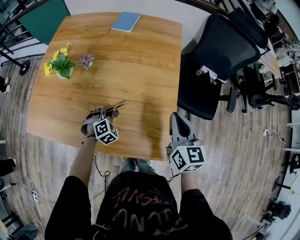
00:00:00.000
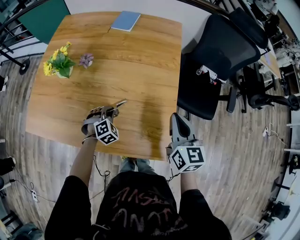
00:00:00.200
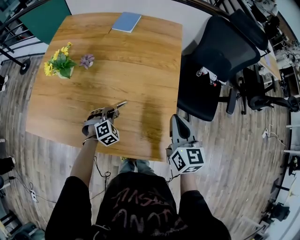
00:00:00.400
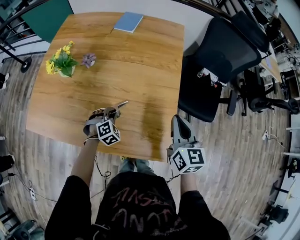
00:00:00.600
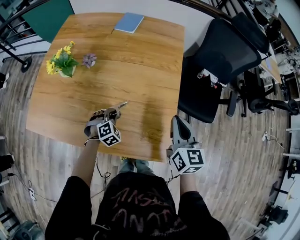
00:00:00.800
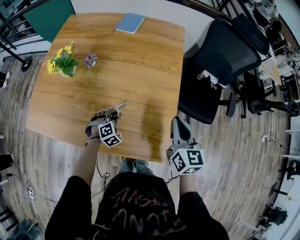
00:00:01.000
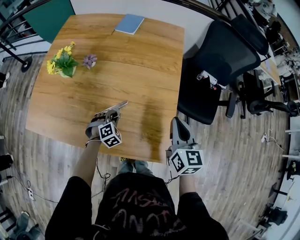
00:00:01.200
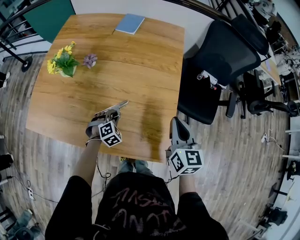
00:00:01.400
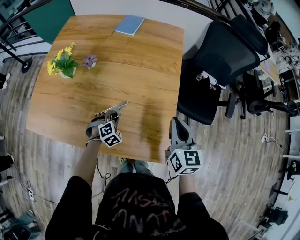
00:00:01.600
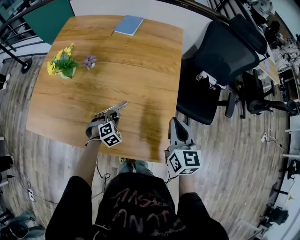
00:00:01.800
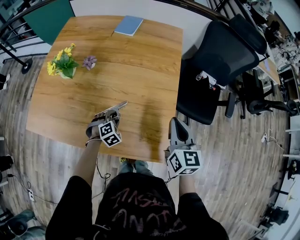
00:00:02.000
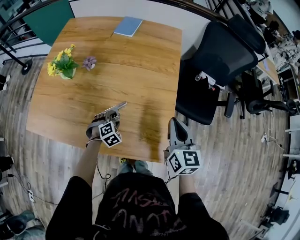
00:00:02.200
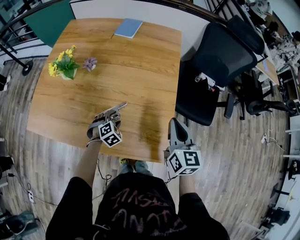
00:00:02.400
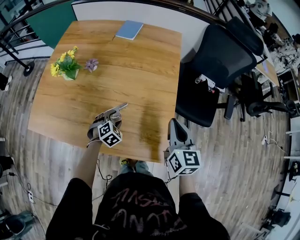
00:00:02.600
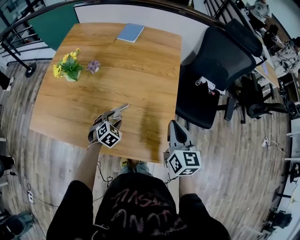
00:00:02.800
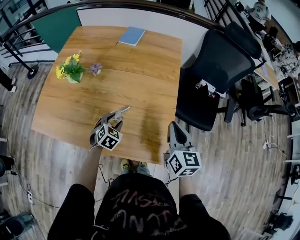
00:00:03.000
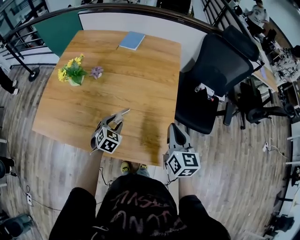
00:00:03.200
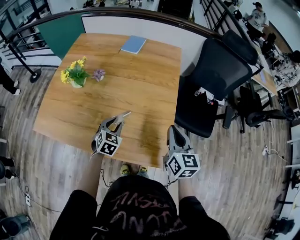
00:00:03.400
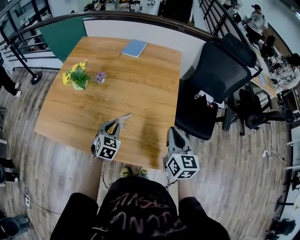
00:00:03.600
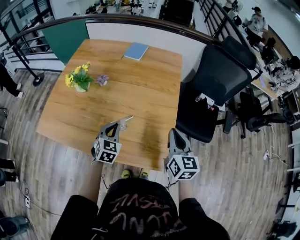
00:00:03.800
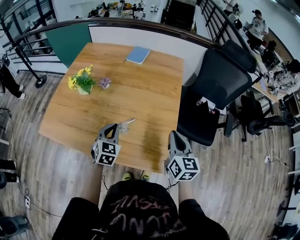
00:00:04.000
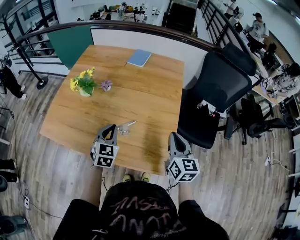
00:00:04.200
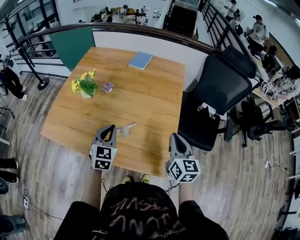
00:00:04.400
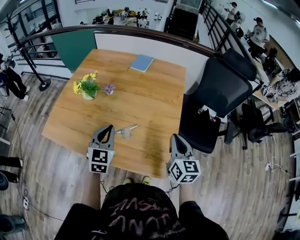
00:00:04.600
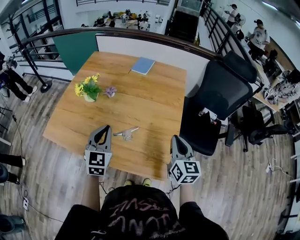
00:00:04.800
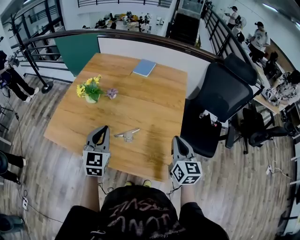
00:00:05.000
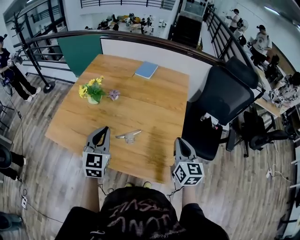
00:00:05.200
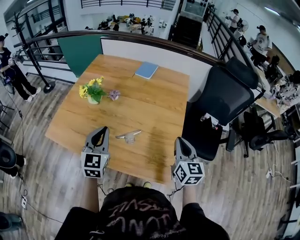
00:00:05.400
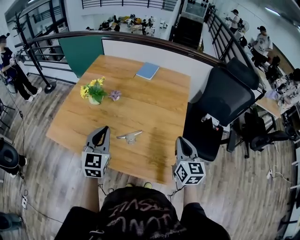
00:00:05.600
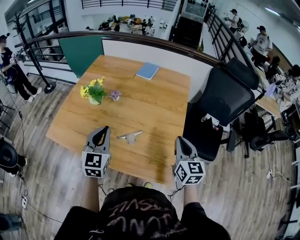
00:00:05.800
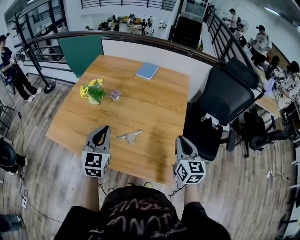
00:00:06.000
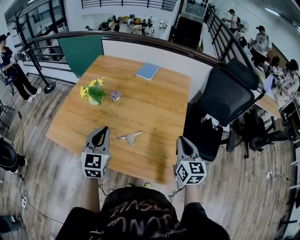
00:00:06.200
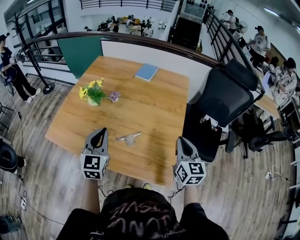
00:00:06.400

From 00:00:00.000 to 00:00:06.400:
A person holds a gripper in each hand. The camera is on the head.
From 00:00:00.000 to 00:00:01.600: The grippers move only a little.
From 00:00:01.600 to 00:00:03.200: The left gripper is displaced upward by roughly 10 cm, and rotates roughly 30 degrees.
From 00:00:03.200 to 00:00:04.800: The left gripper goes about 20 cm upward, points its fingers some 30 degrees further upward, and closes its fingers.
From 00:00:04.800 to 00:00:06.400: The grippers move only a little.

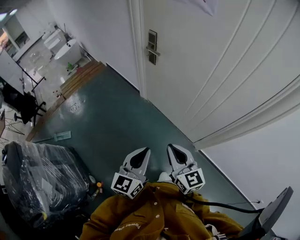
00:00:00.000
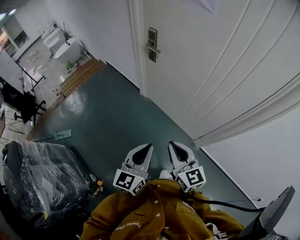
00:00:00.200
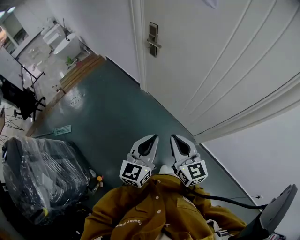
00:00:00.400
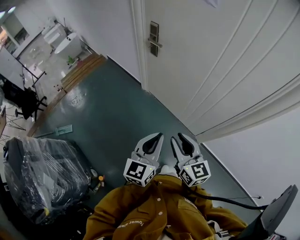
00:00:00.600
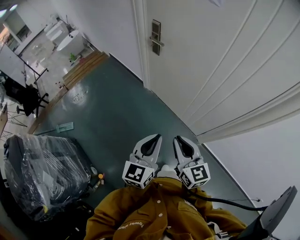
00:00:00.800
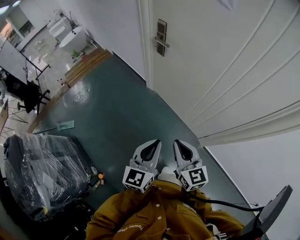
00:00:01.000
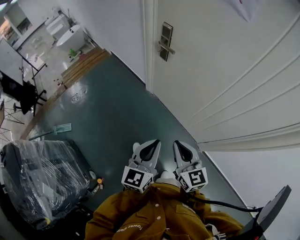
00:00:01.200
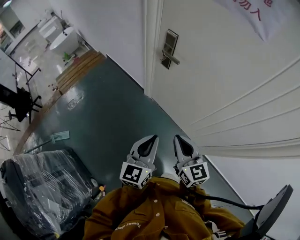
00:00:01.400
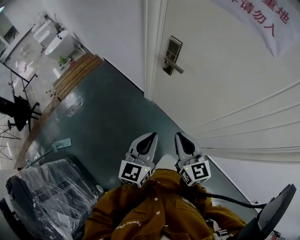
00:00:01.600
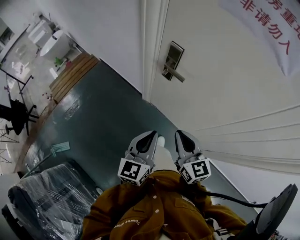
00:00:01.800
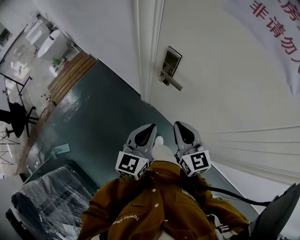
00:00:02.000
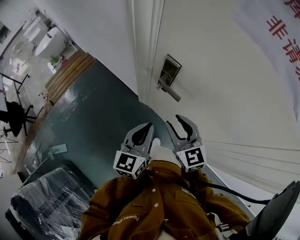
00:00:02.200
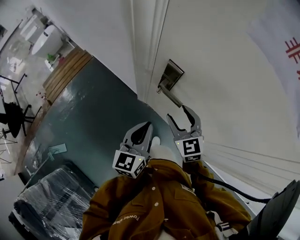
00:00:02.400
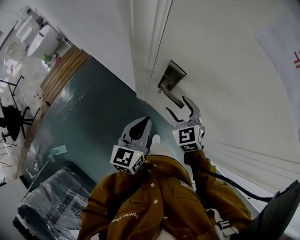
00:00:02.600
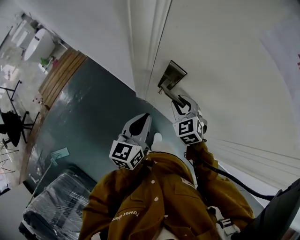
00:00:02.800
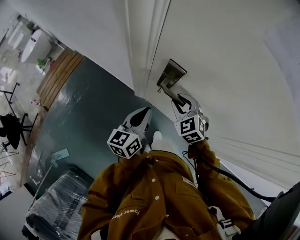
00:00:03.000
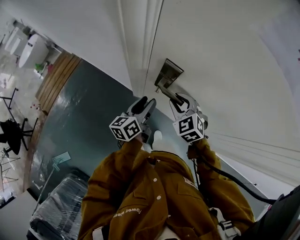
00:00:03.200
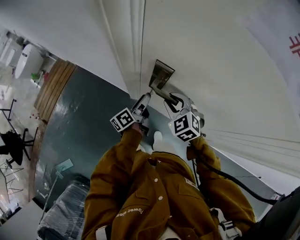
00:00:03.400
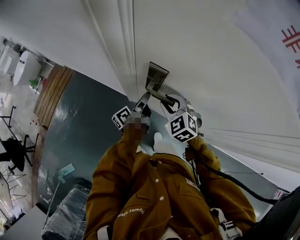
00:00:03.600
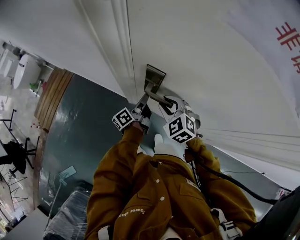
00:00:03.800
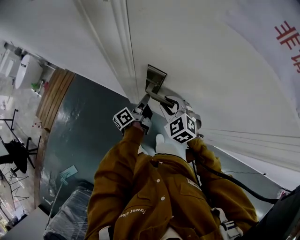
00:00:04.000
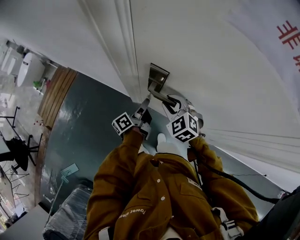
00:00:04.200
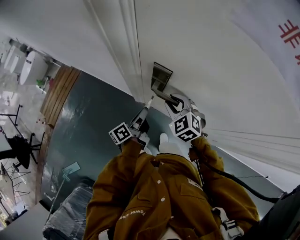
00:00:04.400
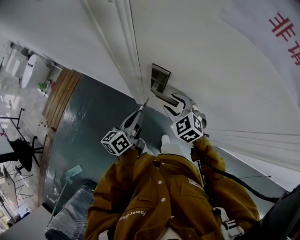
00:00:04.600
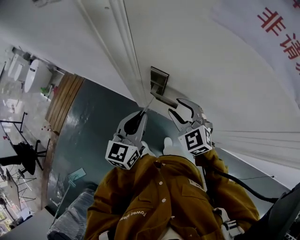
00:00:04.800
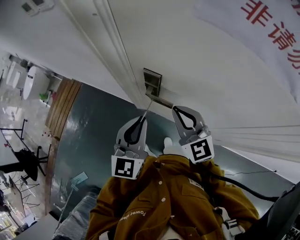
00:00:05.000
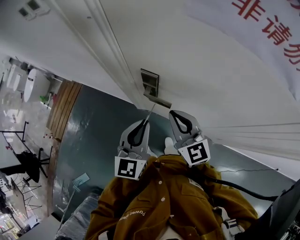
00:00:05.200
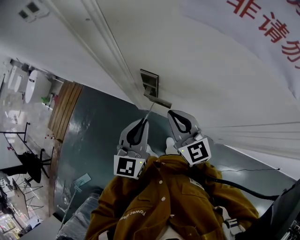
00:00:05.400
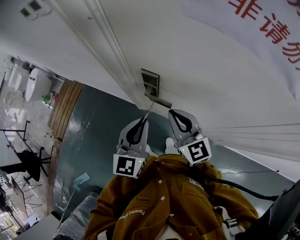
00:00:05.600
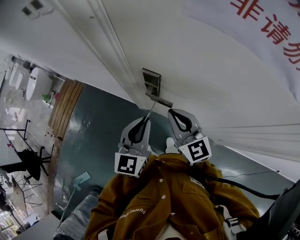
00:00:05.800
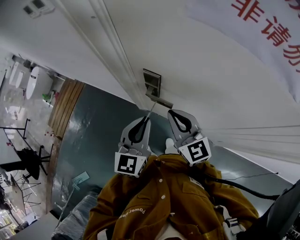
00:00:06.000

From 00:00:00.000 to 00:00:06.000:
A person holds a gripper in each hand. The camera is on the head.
From 00:00:00.000 to 00:00:01.600: Both grippers move forward, approximately 30 cm. The right gripper opens, then closes again.
From 00:00:01.600 to 00:00:03.000: Both grippers travel together forward, about 35 cm. The left gripper turns by some 20 degrees. Meanwhile the right gripper rotates approximately 40 degrees, and opens its fingers.
From 00:00:03.000 to 00:00:04.400: The left gripper shifts approximately 5 cm downward, goes forward and returns, roughly 10 cm each way, rotates around the line of its fingers by roughly 50 degrees, counterclockwise from behind, and opens, then closes again.
From 00:00:04.400 to 00:00:06.000: The right gripper travels upward and backward by roughly 15 cm, points its fingers roughly 40 degrees further upward, and closes up, while the left gripper goes about 15 cm upward, and rolls clockwise, seen from behind, by roughly 80 degrees.

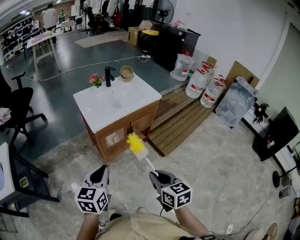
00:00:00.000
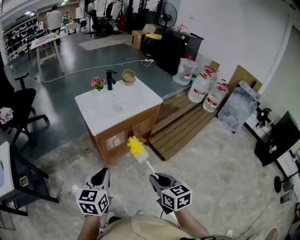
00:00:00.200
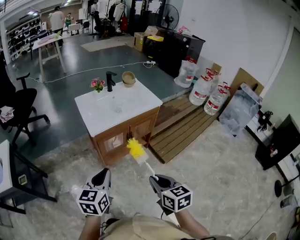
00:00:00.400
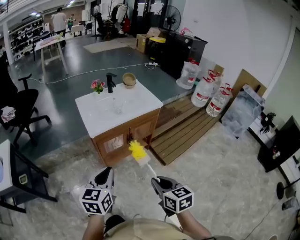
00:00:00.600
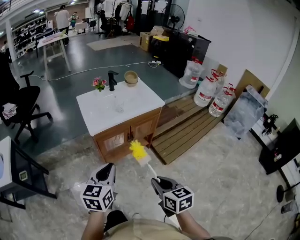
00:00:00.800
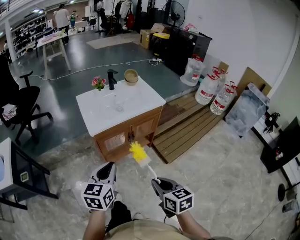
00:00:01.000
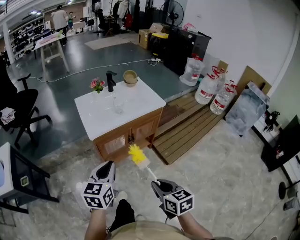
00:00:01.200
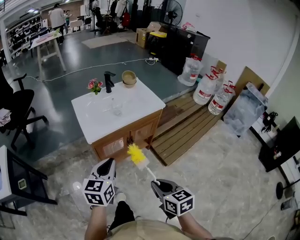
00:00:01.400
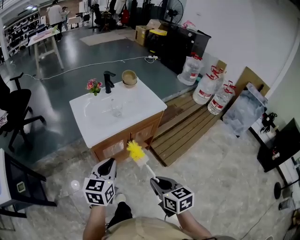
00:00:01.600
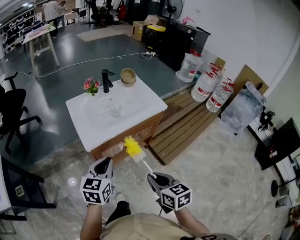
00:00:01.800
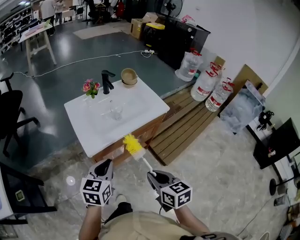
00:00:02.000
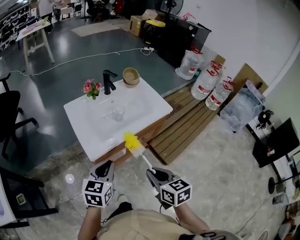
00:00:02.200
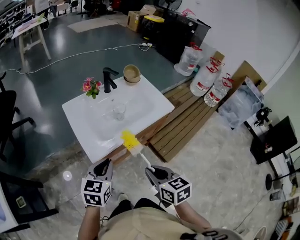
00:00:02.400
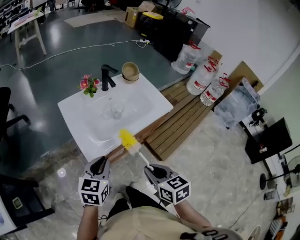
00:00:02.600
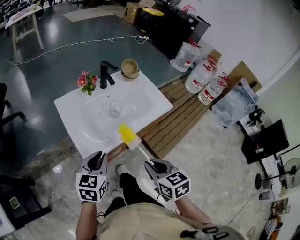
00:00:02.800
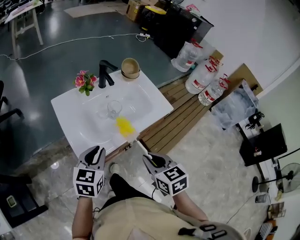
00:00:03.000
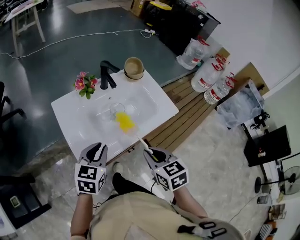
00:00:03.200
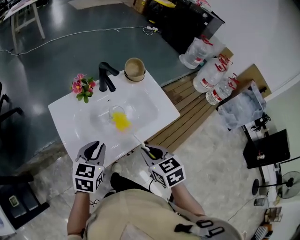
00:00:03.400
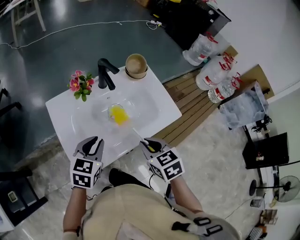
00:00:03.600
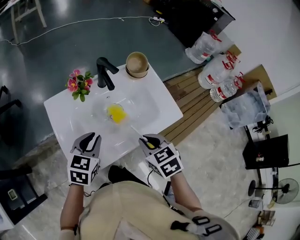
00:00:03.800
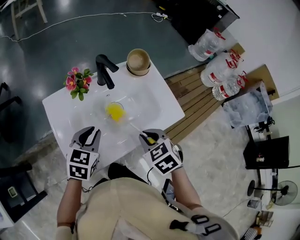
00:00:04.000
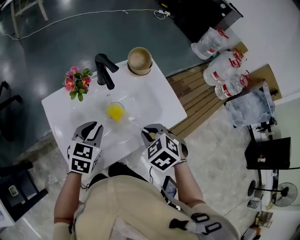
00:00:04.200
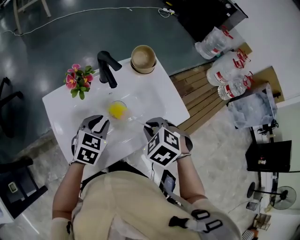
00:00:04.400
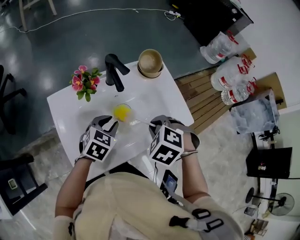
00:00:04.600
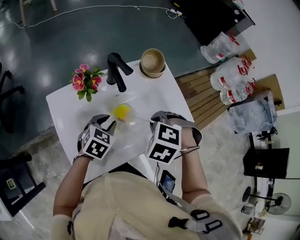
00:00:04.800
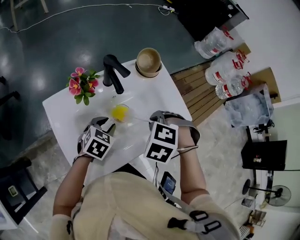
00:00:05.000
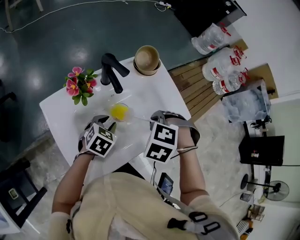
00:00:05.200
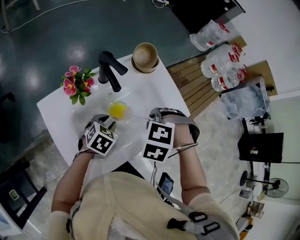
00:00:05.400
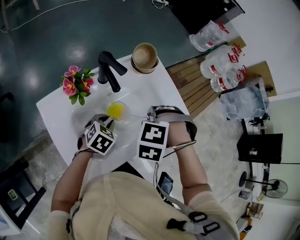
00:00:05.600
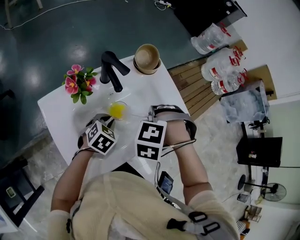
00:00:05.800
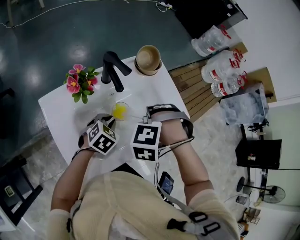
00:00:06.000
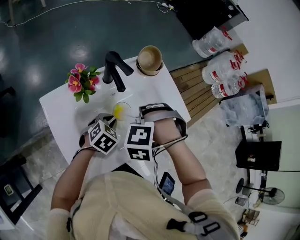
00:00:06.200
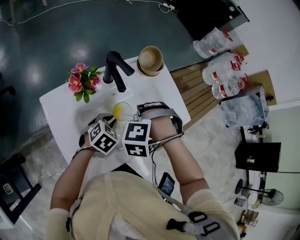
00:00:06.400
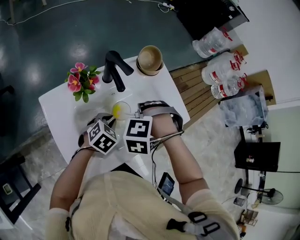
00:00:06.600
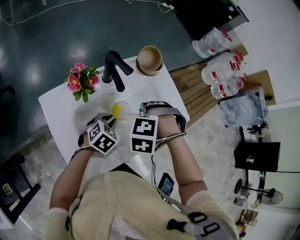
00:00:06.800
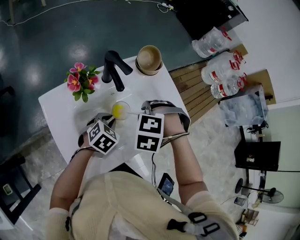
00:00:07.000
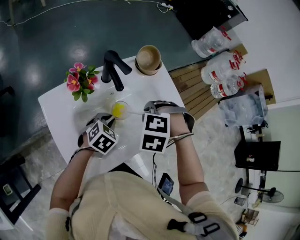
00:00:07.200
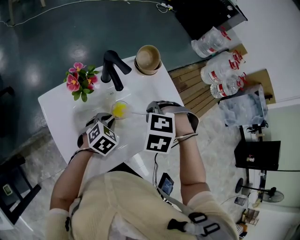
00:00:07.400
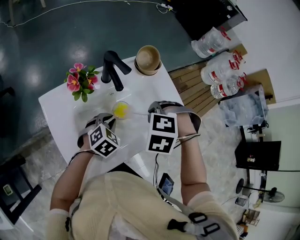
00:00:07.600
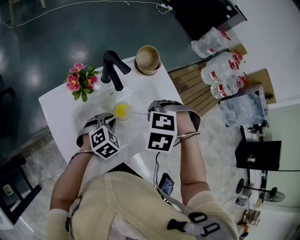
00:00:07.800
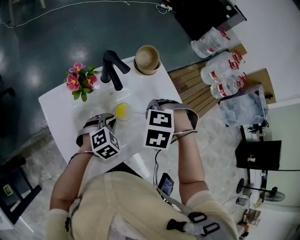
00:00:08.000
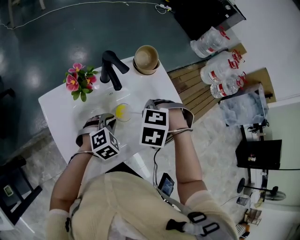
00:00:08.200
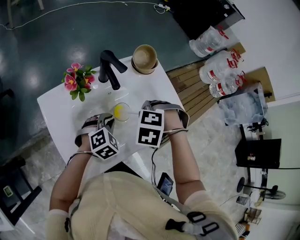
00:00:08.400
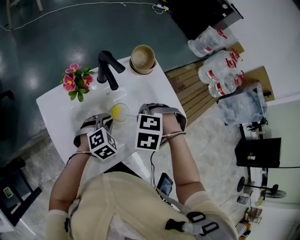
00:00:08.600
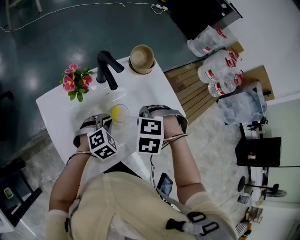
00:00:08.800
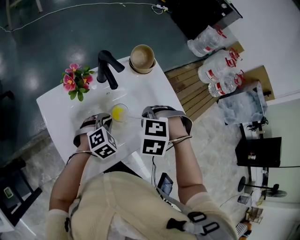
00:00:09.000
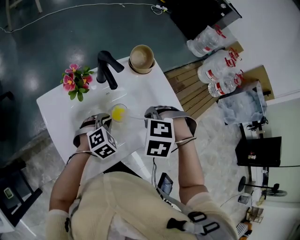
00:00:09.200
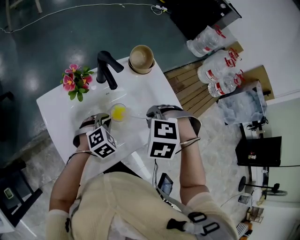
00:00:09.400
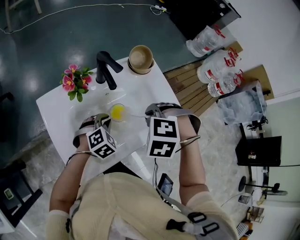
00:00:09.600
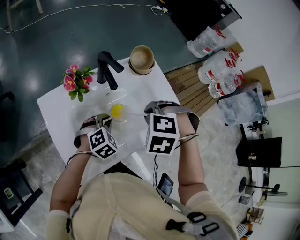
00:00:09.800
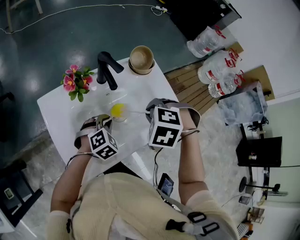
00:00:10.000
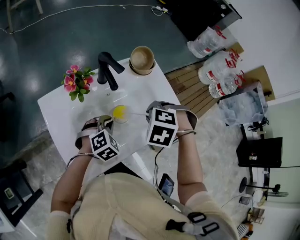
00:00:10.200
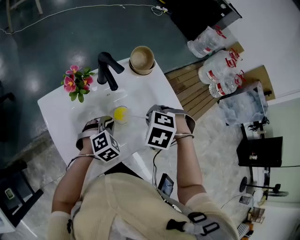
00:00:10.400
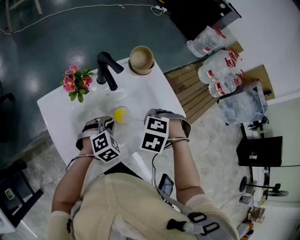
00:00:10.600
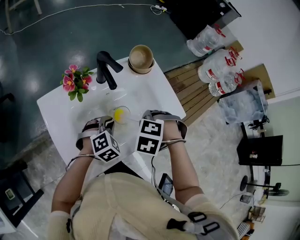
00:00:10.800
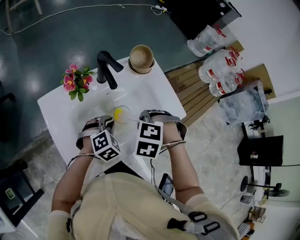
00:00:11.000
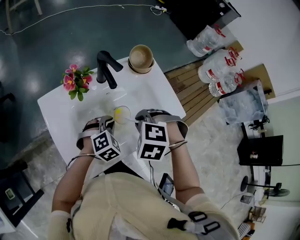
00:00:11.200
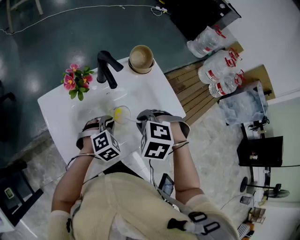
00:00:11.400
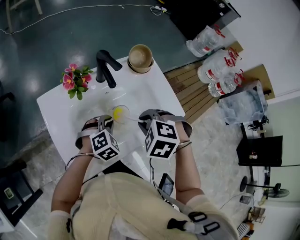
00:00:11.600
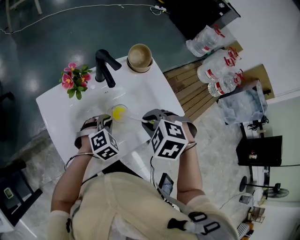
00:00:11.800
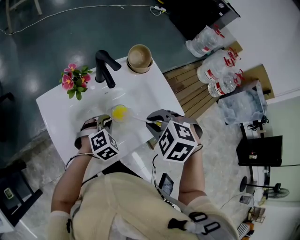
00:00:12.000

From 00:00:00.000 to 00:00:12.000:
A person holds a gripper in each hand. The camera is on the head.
From 00:00:00.000 to 00:00:01.600: The left gripper changes place by approximately 15 cm.
From 00:00:01.600 to 00:00:03.000: The left gripper shifts by some 25 cm.
From 00:00:03.000 to 00:00:04.400: The left gripper moves approximately 20 cm.
From 00:00:04.400 to 00:00:06.000: The left gripper goes approximately 10 cm downward.
